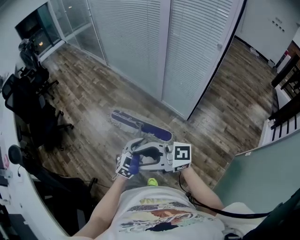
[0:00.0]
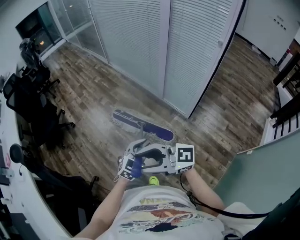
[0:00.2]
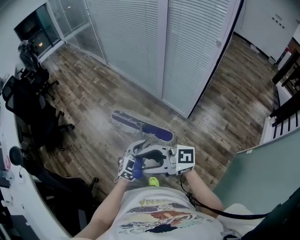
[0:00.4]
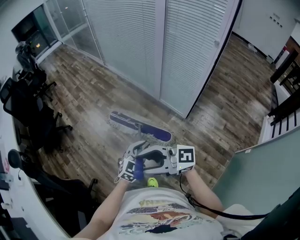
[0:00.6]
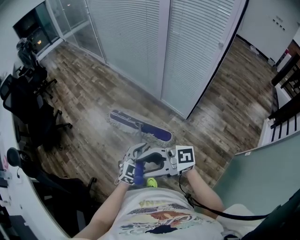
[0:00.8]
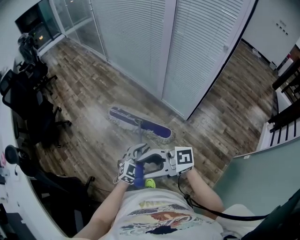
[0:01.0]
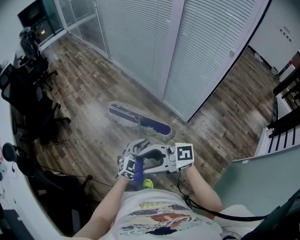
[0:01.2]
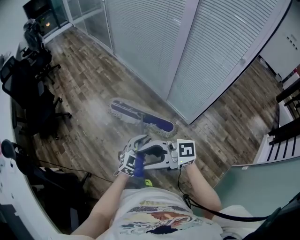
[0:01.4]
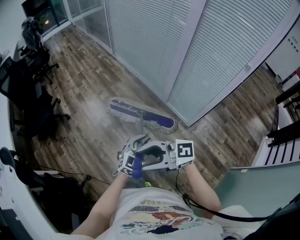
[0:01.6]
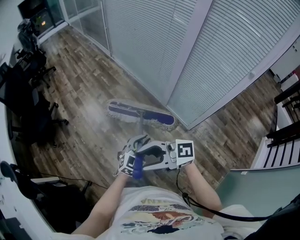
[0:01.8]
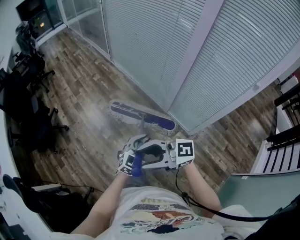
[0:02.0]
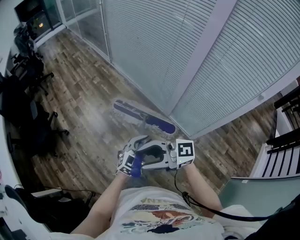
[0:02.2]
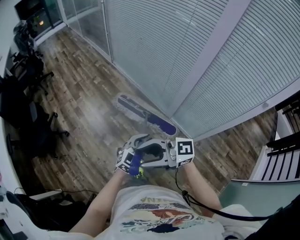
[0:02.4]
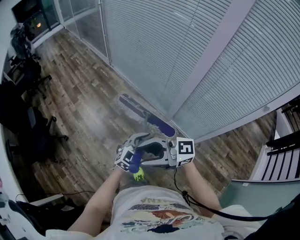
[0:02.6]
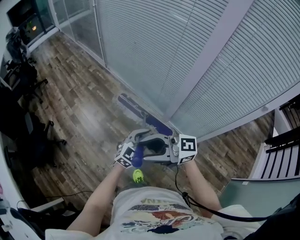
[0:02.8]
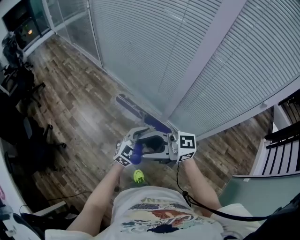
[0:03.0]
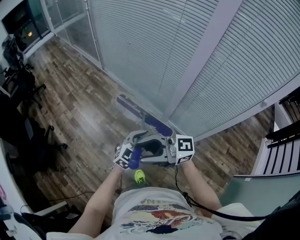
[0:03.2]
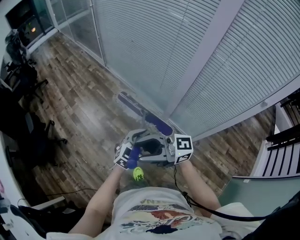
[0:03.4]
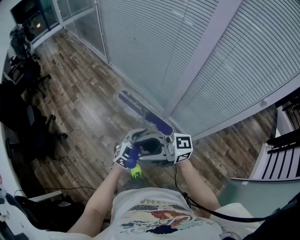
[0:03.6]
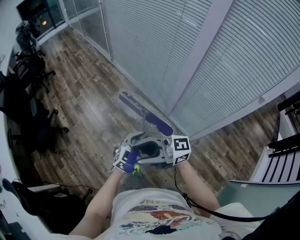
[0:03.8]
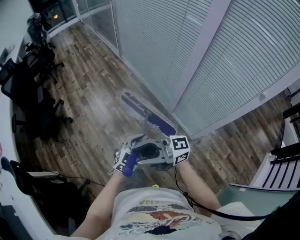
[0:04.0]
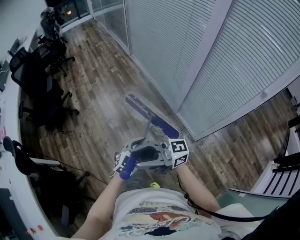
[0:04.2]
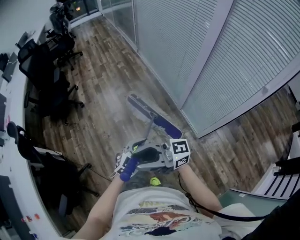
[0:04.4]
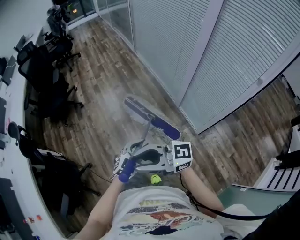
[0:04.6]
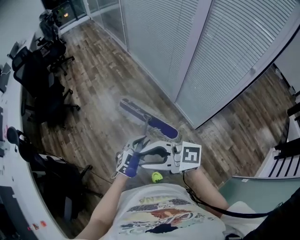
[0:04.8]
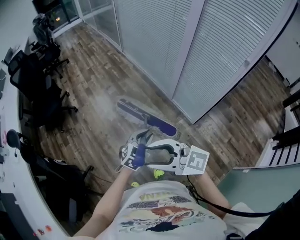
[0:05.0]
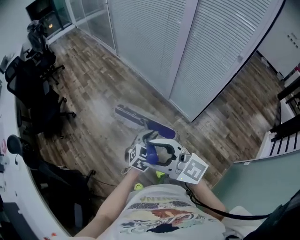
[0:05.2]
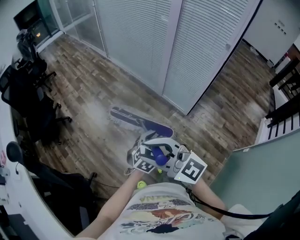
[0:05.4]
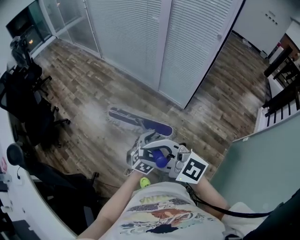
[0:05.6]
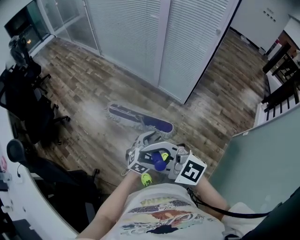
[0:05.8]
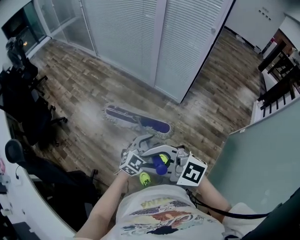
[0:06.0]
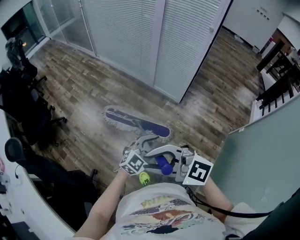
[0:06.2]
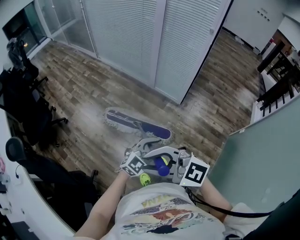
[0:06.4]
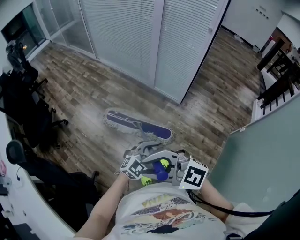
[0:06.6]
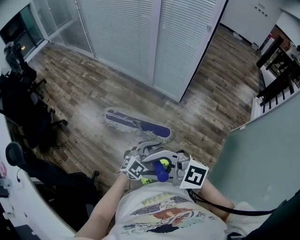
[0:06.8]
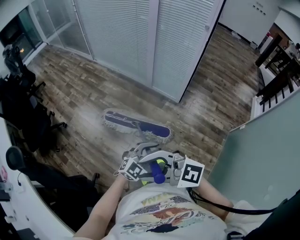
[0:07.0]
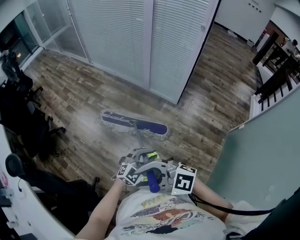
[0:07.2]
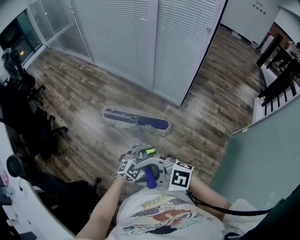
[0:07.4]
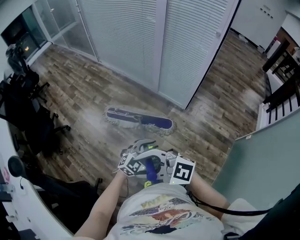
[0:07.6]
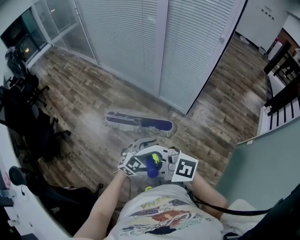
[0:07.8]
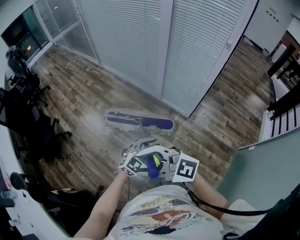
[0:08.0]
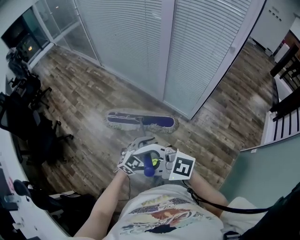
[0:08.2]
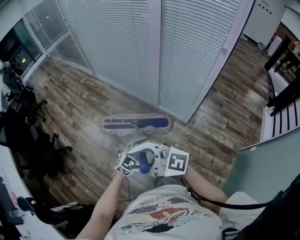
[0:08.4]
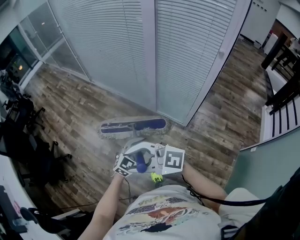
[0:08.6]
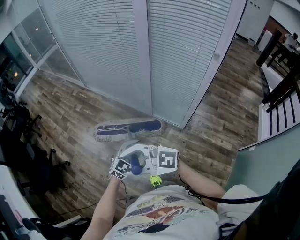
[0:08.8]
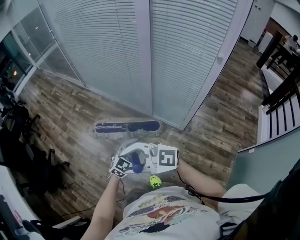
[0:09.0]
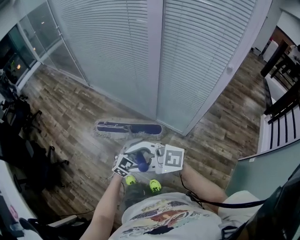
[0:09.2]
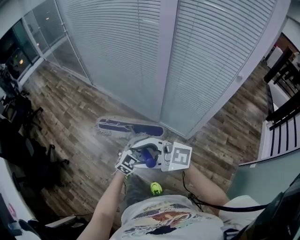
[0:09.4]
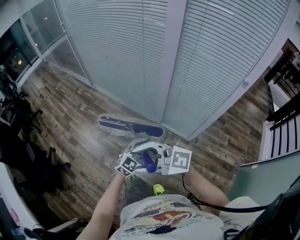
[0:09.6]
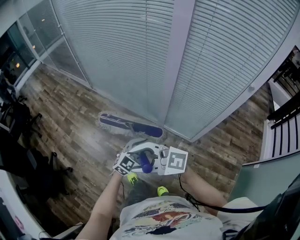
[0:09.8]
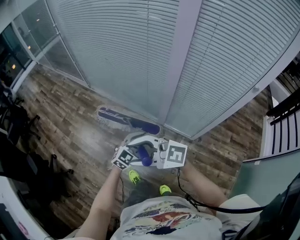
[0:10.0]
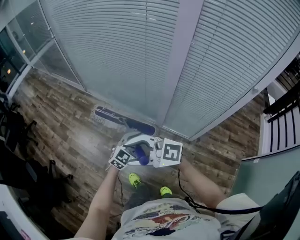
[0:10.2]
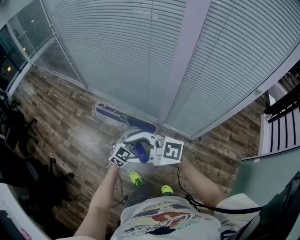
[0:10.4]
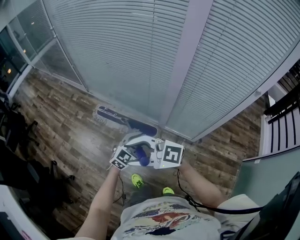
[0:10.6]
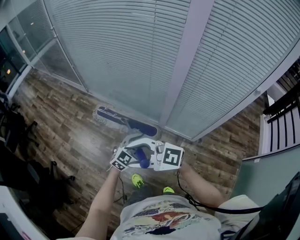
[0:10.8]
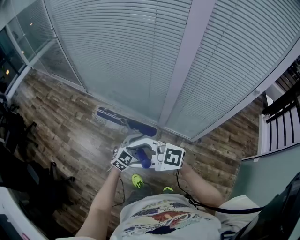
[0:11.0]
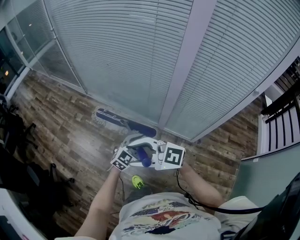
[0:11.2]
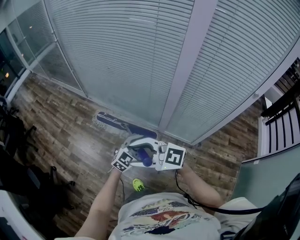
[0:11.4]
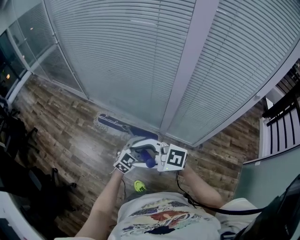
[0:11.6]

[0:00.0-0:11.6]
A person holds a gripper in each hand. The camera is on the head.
0:00.0 to 0:01.4: The left gripper moves some 10 cm. The right gripper ends up approximately 10 cm from where it was.
0:01.4 to 0:02.8: Both grippers are carried roughly 40 cm.
0:02.8 to 0:04.4: The left gripper ends up about 35 cm from where it was, and rotates roughly 30 degrees. The right gripper ends up some 35 cm from where it was, and turns by about 30 degrees.
0:04.4 to 0:05.8: The right gripper ends up some 30 cm from where it was, and rotates about 70 degrees. The left gripper shifts by approximately 30 cm, and changes its angle by approximately 20 degrees.
0:05.8 to 0:07.2: The right gripper ends up about 10 cm from where it was, while the left gripper changes place by roughly 10 cm, and turns by approximately 30 degrees.
0:07.2 to 0:08.8: The two grippers travel together, about 50 cm.
0:08.8 to 0:10.2: The left gripper moves some 30 cm, while the right gripper shifts by some 35 cm.
0:10.2 to 0:11.6: The right gripper moves approximately 5 cm.

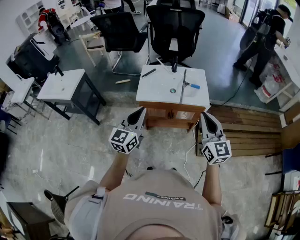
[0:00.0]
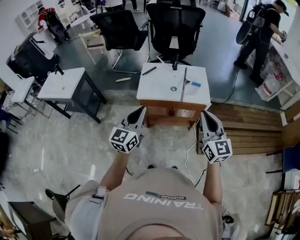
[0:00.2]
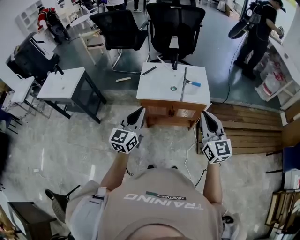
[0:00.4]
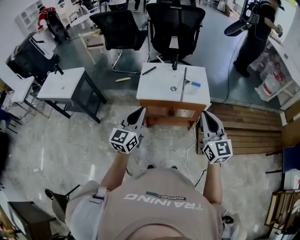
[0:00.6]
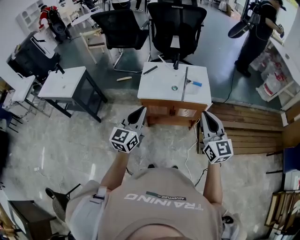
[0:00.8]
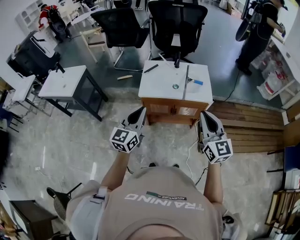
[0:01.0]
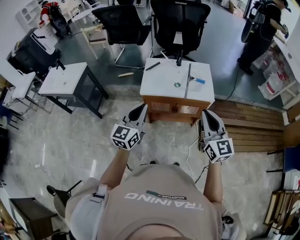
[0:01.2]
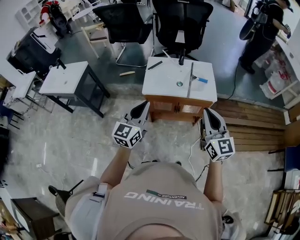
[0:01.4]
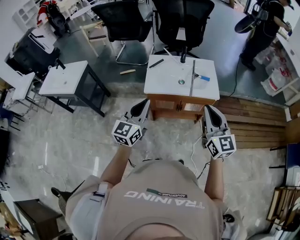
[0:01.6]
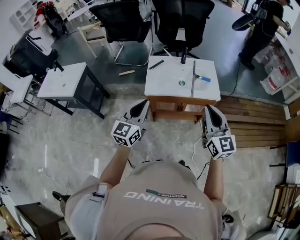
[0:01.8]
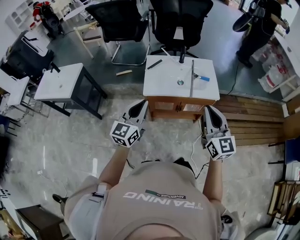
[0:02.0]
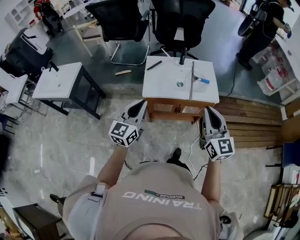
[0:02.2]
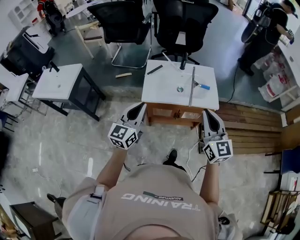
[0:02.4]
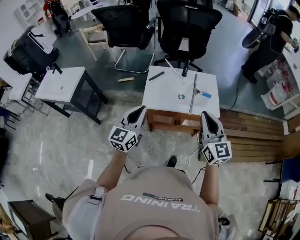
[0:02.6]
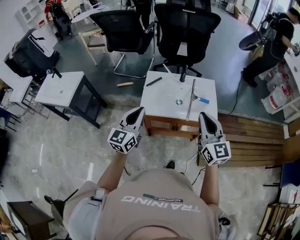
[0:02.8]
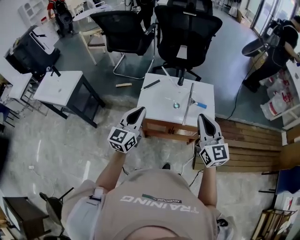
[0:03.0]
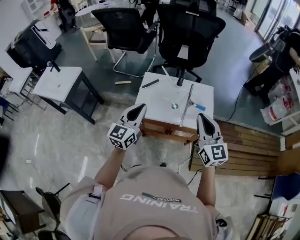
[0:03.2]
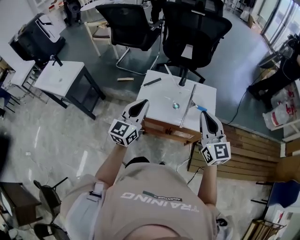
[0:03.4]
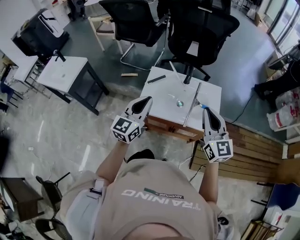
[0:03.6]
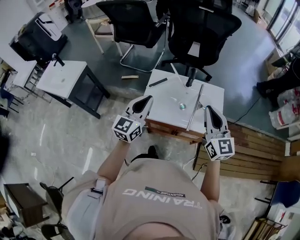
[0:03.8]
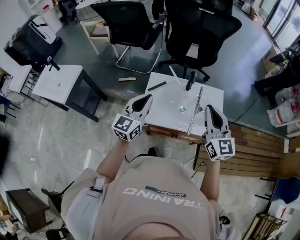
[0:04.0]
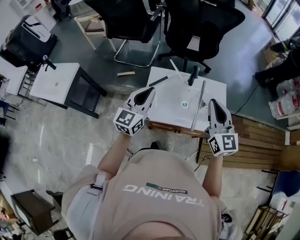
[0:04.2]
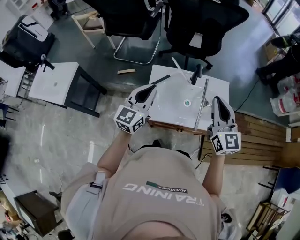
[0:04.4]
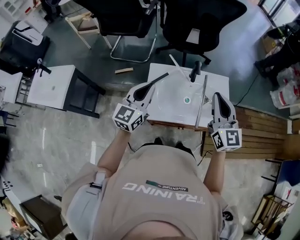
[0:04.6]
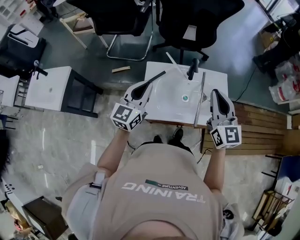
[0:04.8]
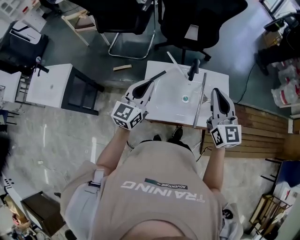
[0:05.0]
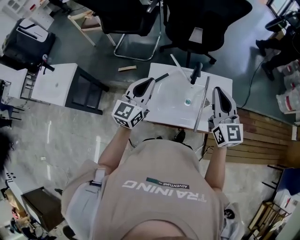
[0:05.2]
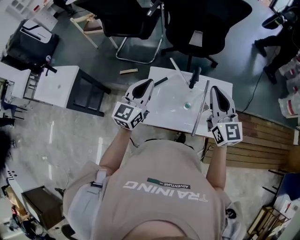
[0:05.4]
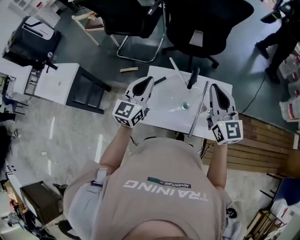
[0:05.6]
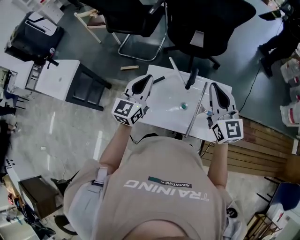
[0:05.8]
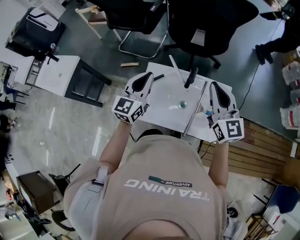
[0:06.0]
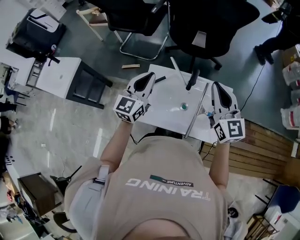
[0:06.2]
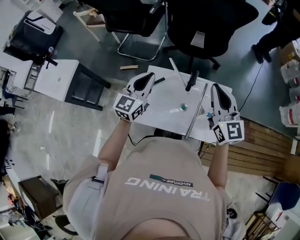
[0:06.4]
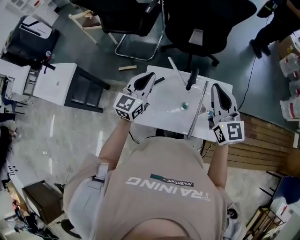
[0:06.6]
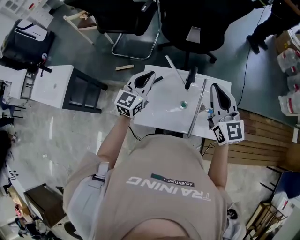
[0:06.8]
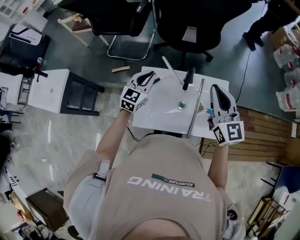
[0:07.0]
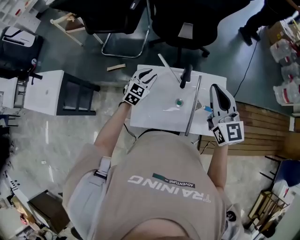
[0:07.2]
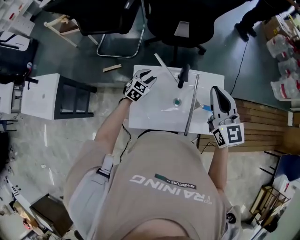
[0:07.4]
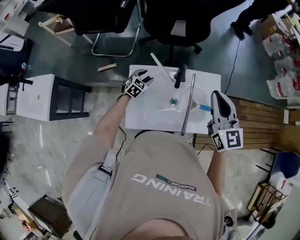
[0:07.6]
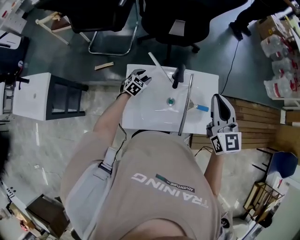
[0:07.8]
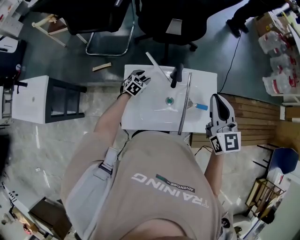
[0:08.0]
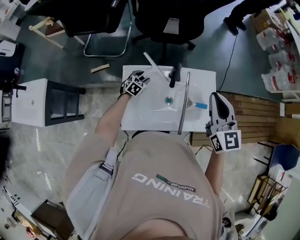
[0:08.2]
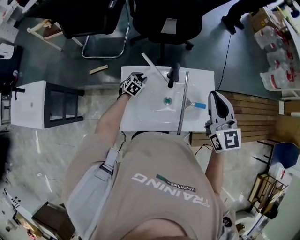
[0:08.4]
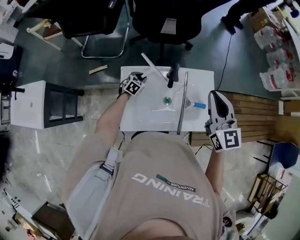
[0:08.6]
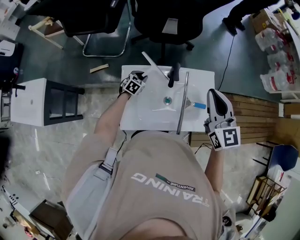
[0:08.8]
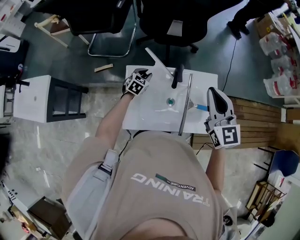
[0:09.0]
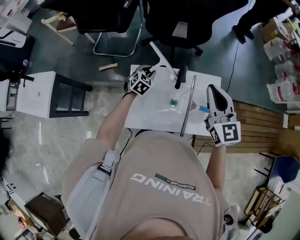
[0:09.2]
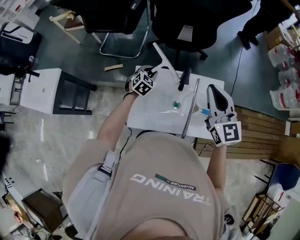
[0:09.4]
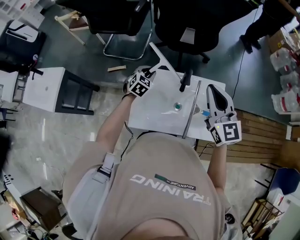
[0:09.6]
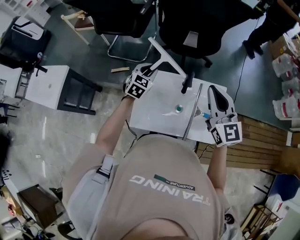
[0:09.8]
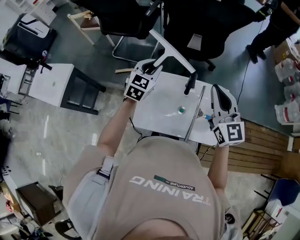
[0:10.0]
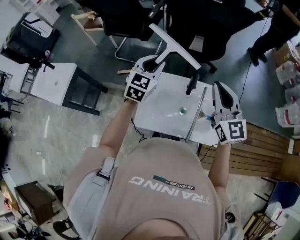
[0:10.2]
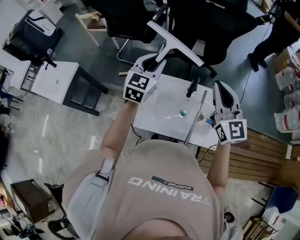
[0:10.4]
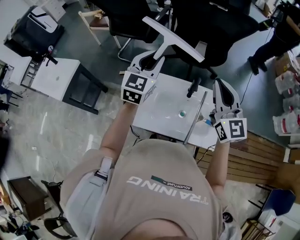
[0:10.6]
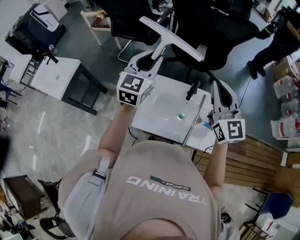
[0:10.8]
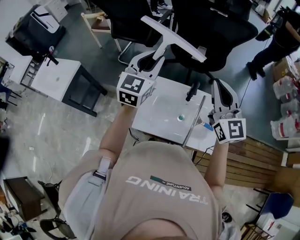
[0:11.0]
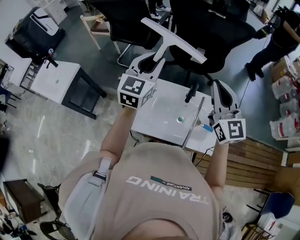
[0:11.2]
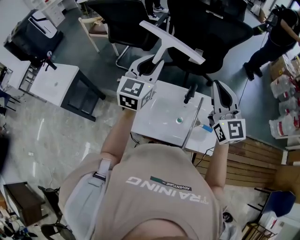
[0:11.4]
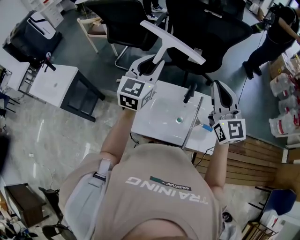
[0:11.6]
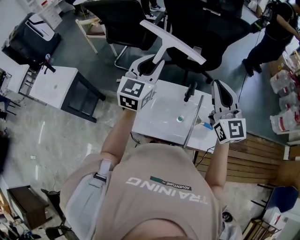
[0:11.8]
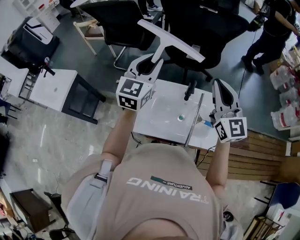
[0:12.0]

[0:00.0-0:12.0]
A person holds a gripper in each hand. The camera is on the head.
0:00.0 to 0:01.6: The right gripper heads to the left, covering about 5 cm, while the left gripper ends up some 5 cm from where it was.
0:01.6 to 0:03.0: Both grippers move forward, about 15 cm.
0:03.0 to 0:04.4: Both grippers move forward, roughly 20 cm.
0:04.4 to 0:06.0: The left gripper travels forward and to the right by about 10 cm. Meanwhile the right gripper shifts approximately 10 cm forward.
0:06.0 to 0:07.6: The left gripper heads downward and forward, covering roughly 35 cm, points its fingers roughly 40 degrees further downward, and opens its fingers.
0:07.6 to 0:09.0: The left gripper closes up.
0:09.0 to 0:10.4: The right gripper is displaced upward by roughly 5 cm. The left gripper goes about 35 cm upward, and points its fingers about 30 degrees further upward.
0:10.4 to 0:12.0: The left gripper travels upward by approximately 5 cm.
